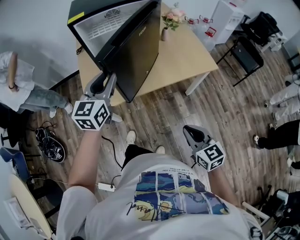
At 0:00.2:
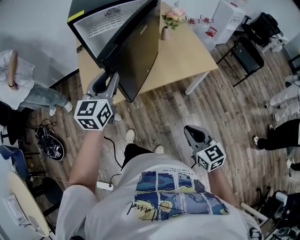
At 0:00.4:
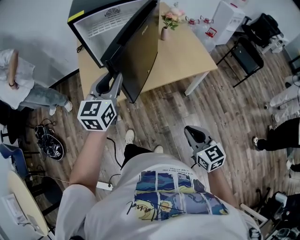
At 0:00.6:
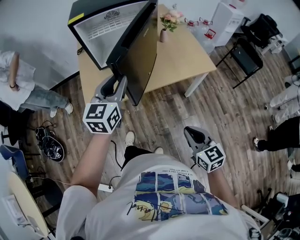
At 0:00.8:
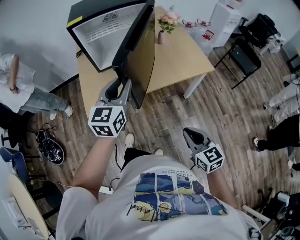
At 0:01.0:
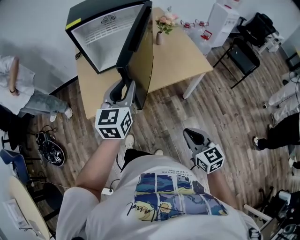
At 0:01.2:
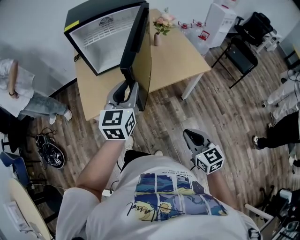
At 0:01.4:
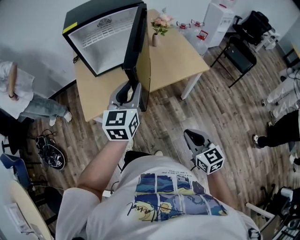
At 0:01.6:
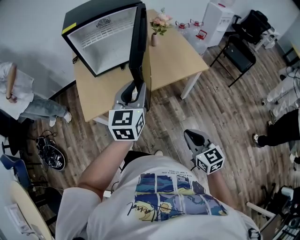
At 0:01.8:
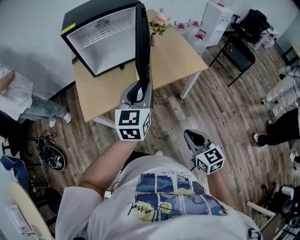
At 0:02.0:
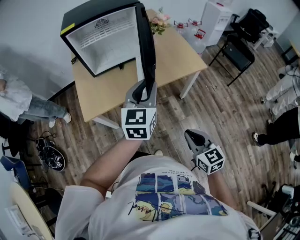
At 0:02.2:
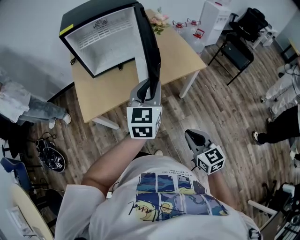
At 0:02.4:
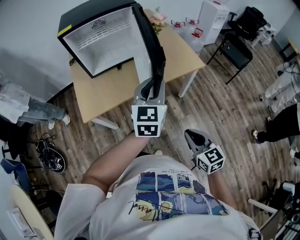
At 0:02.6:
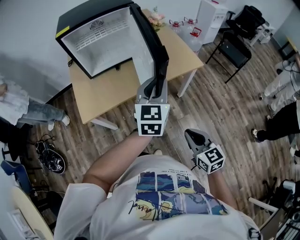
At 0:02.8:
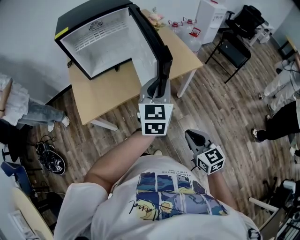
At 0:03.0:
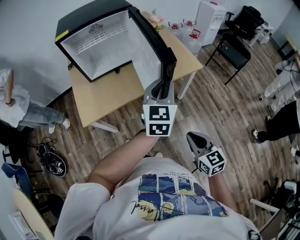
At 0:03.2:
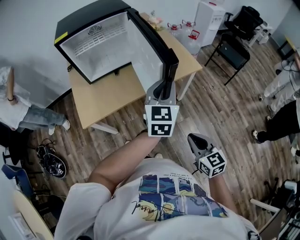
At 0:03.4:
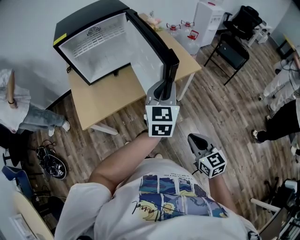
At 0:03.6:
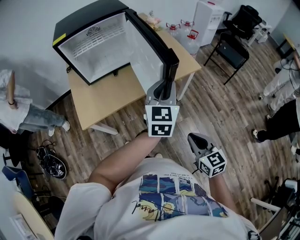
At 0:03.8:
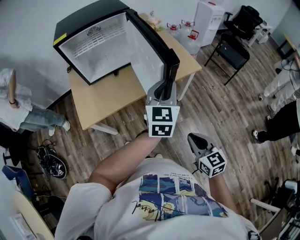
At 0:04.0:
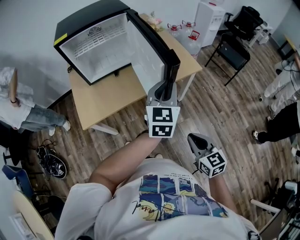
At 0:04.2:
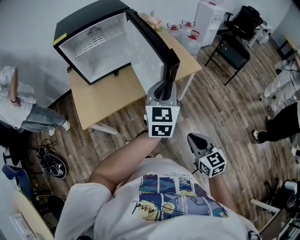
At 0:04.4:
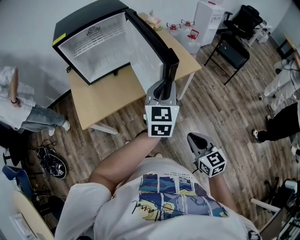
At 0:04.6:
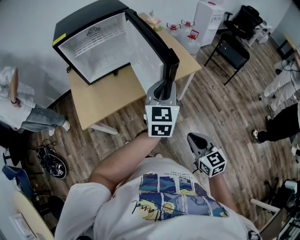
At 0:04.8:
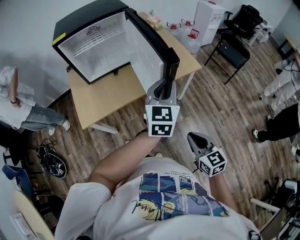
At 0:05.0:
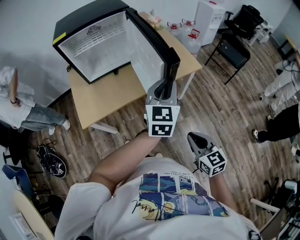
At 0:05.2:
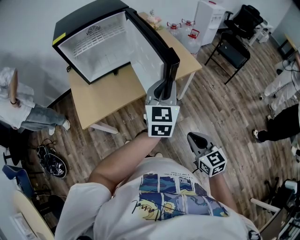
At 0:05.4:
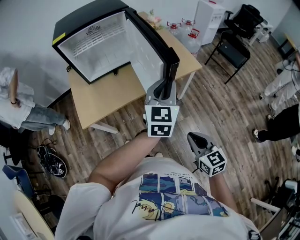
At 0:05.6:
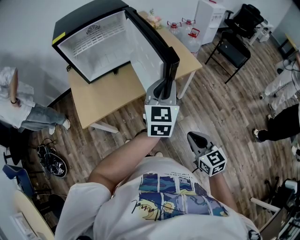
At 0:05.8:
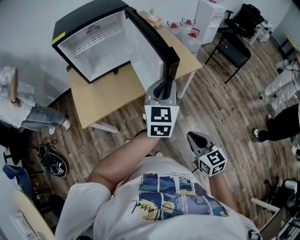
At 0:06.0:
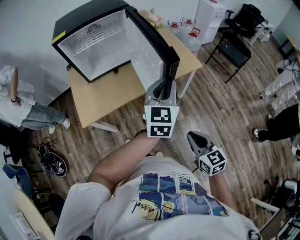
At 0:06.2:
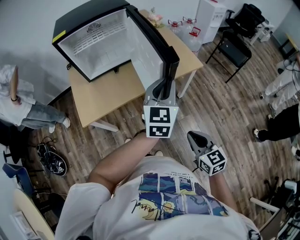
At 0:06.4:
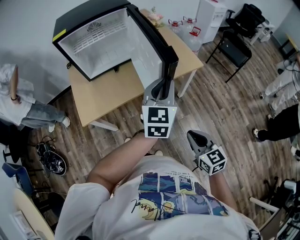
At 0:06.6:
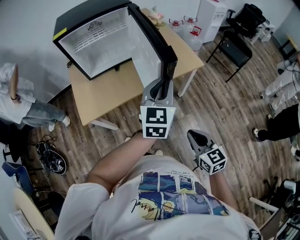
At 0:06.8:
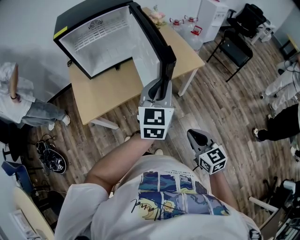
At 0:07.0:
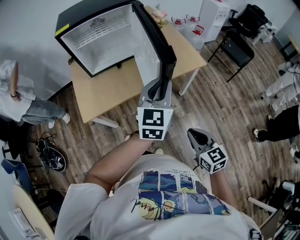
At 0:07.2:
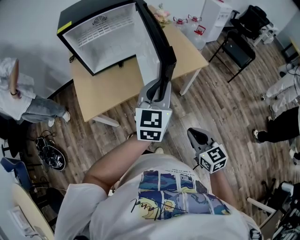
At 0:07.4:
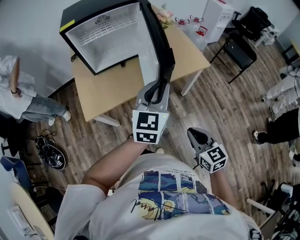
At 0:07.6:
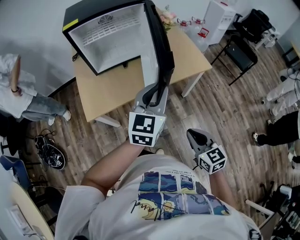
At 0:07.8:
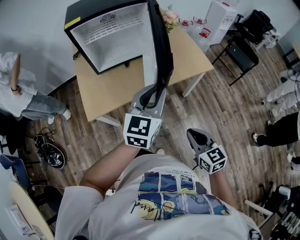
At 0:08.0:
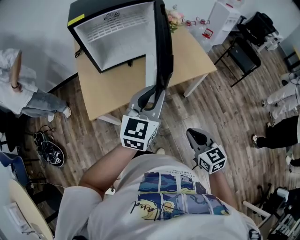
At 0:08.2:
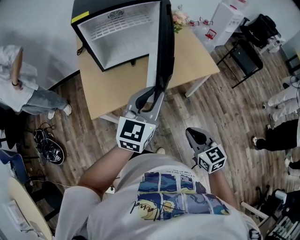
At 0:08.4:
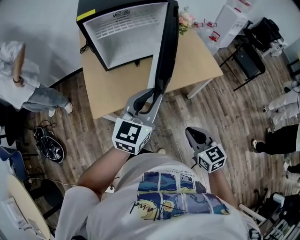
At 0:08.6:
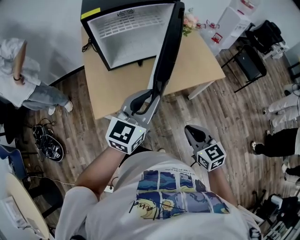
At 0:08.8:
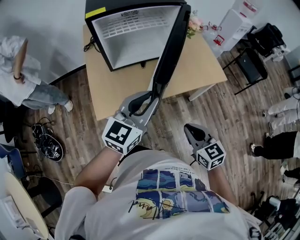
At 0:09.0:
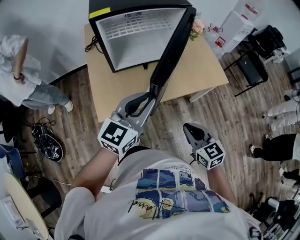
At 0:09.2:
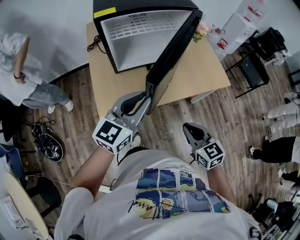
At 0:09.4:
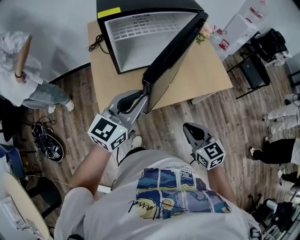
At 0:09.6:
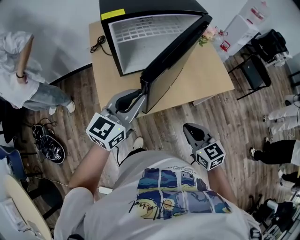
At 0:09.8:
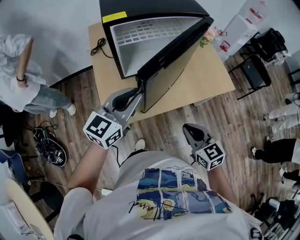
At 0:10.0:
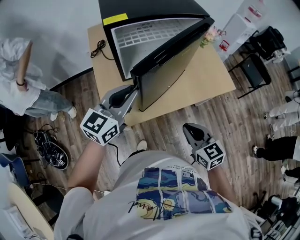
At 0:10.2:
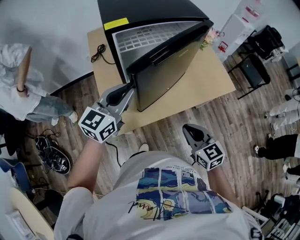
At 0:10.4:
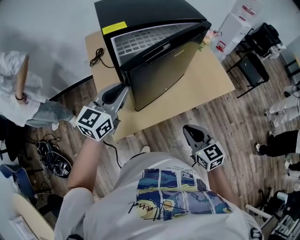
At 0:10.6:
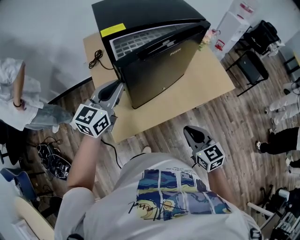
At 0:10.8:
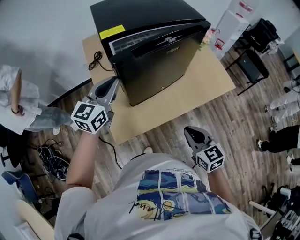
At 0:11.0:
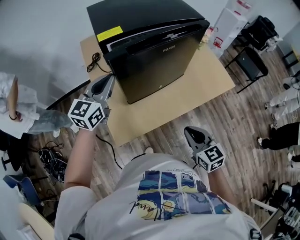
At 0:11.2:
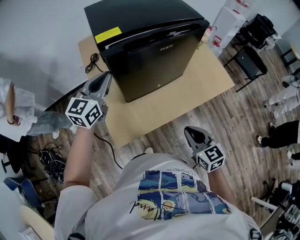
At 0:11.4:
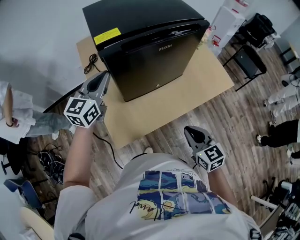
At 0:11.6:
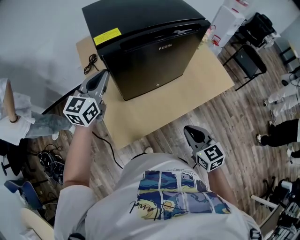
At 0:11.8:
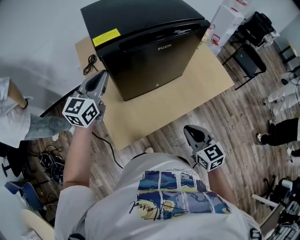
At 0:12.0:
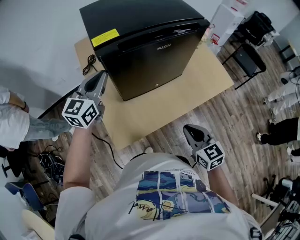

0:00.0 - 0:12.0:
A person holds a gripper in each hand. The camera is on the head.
0:00.0 - 0:01.6: The left gripper goes about 15 cm to the right and backward. Meanwhile the right gripper changes place by roughly 5 cm.
0:01.6 - 0:03.0: The left gripper shifts about 10 cm to the right.
0:03.0 - 0:04.4: The grippers move only a little.
0:04.4 - 0:06.0: Both grippers stay about where they are.
0:06.0 - 0:07.6: The left gripper travels to the left by roughly 10 cm, while the right gripper is displaced to the left by some 5 cm.
0:07.6 - 0:09.0: The left gripper travels to the left by some 15 cm. Meanwhile the right gripper is displaced to the left and forward by roughly 15 cm.
0:09.0 - 0:10.4: The left gripper is displaced to the left and forward by some 20 cm, while the right gripper travels to the left and forward by some 10 cm.
0:10.4 - 0:12.0: The left gripper heads forward and to the left, covering about 15 cm.

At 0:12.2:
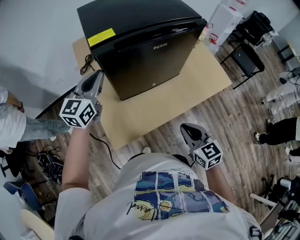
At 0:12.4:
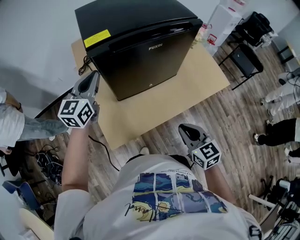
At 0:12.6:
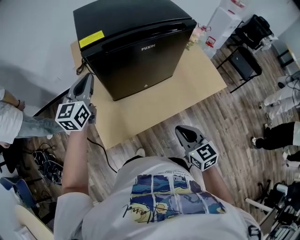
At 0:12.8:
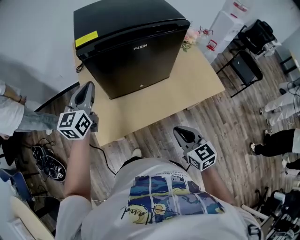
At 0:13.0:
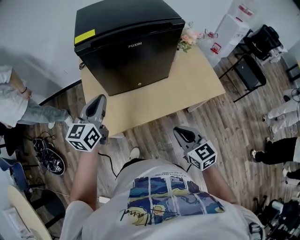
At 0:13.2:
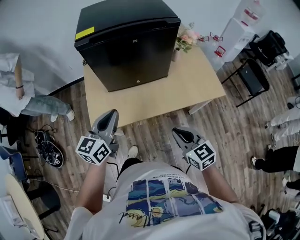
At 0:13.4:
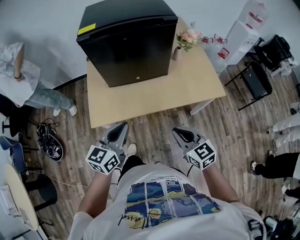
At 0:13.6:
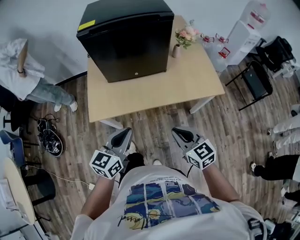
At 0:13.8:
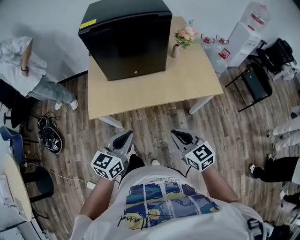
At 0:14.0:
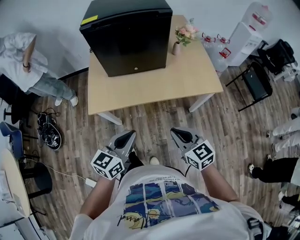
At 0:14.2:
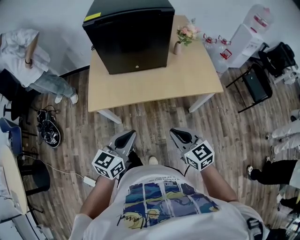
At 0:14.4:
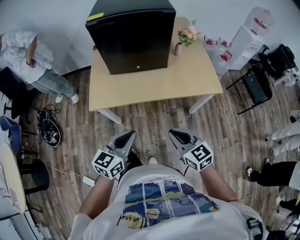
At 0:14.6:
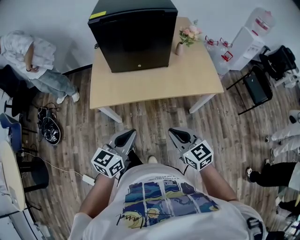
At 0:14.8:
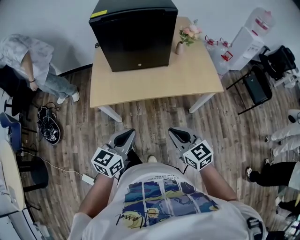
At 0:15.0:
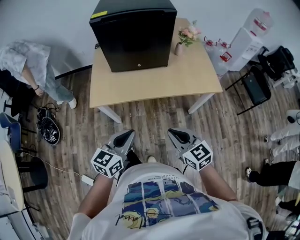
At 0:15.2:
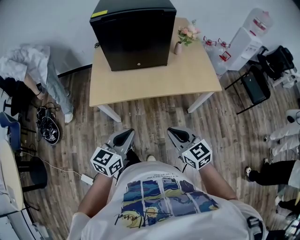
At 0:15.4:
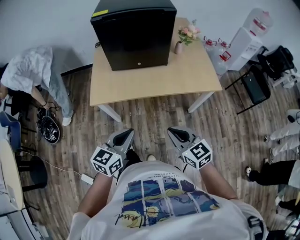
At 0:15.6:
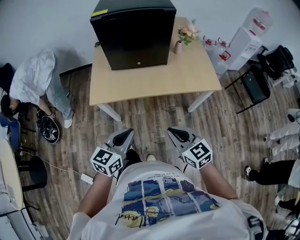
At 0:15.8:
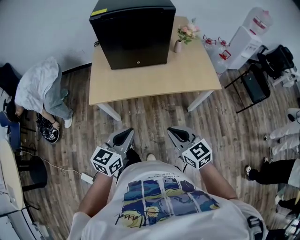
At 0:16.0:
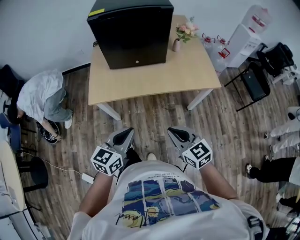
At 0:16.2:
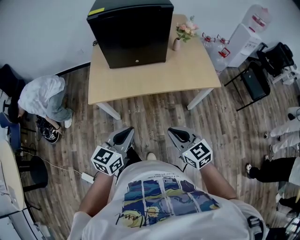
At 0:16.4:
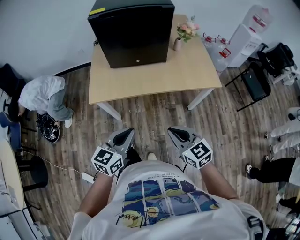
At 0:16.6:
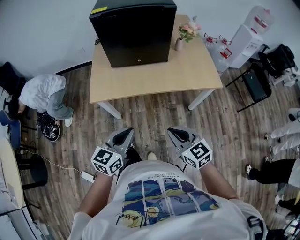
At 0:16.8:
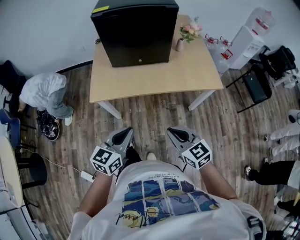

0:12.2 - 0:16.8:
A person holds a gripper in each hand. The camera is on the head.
0:12.2 - 0:13.8: The left gripper travels backward and to the right by some 50 cm, and turns by some 20 degrees; the right gripper travels to the right and backward by about 20 cm, and changes its angle by approximately 30 degrees.
0:13.8 - 0:15.2: The two grippers go roughly 5 cm backward.
0:15.2 - 0:16.8: The grippers stay close to where they were, moving slightly.

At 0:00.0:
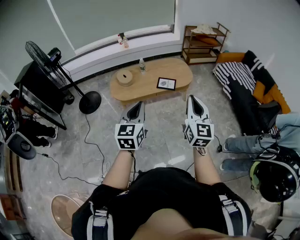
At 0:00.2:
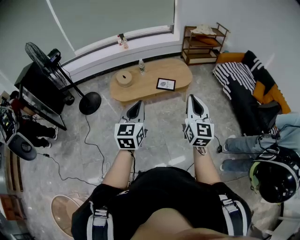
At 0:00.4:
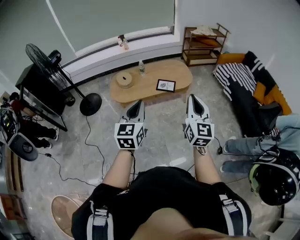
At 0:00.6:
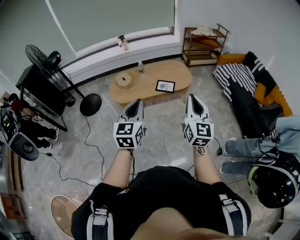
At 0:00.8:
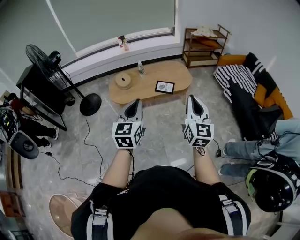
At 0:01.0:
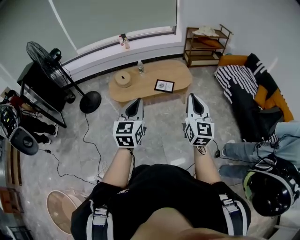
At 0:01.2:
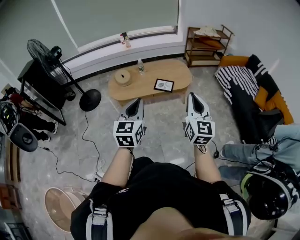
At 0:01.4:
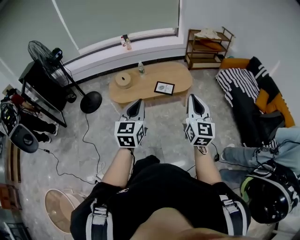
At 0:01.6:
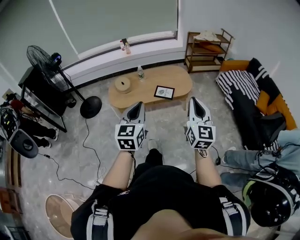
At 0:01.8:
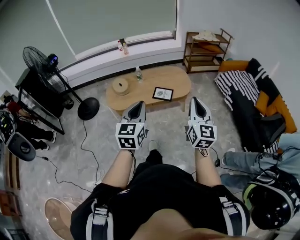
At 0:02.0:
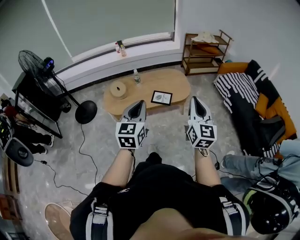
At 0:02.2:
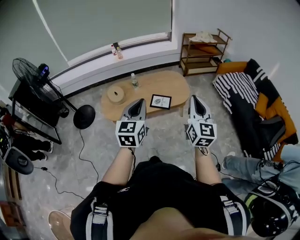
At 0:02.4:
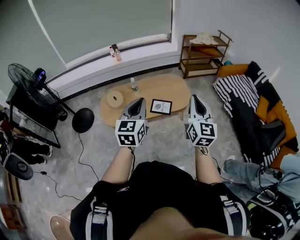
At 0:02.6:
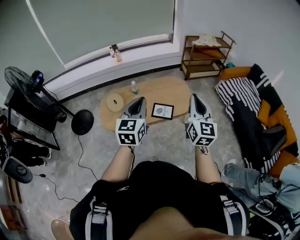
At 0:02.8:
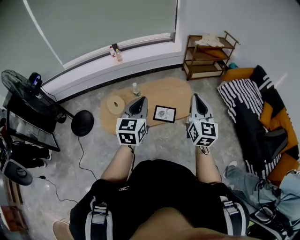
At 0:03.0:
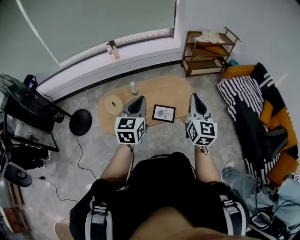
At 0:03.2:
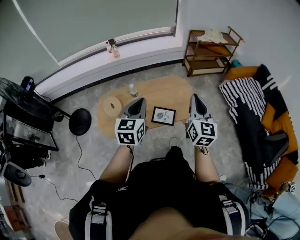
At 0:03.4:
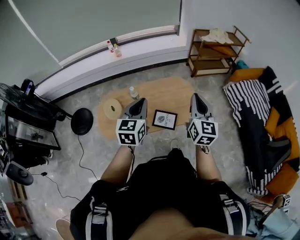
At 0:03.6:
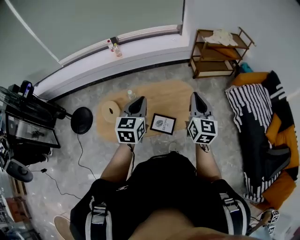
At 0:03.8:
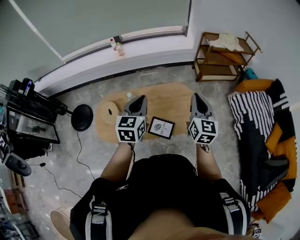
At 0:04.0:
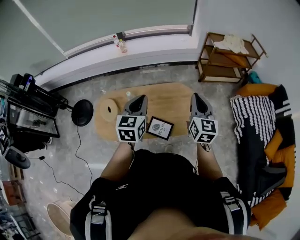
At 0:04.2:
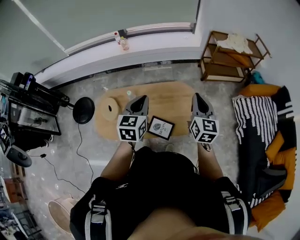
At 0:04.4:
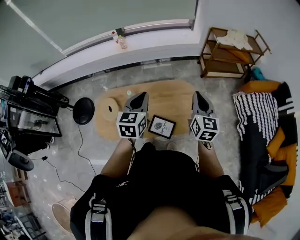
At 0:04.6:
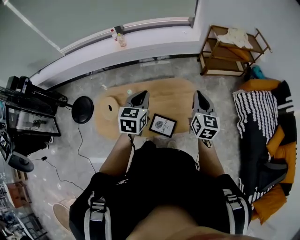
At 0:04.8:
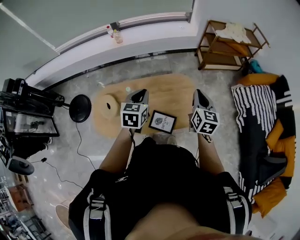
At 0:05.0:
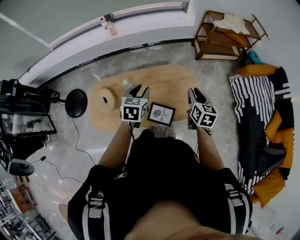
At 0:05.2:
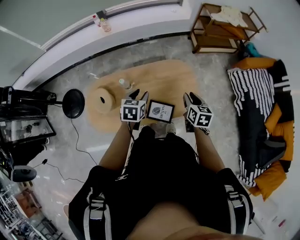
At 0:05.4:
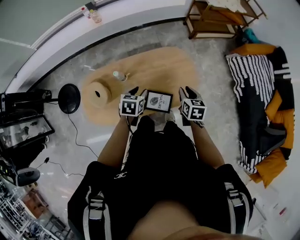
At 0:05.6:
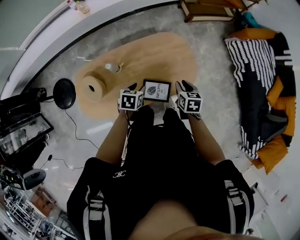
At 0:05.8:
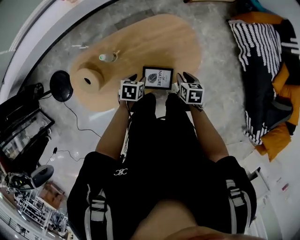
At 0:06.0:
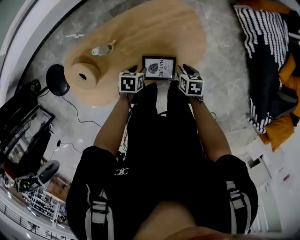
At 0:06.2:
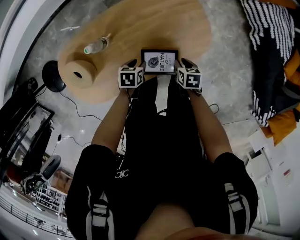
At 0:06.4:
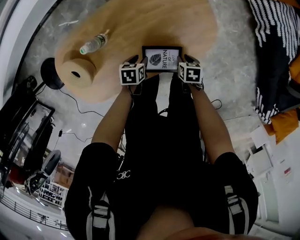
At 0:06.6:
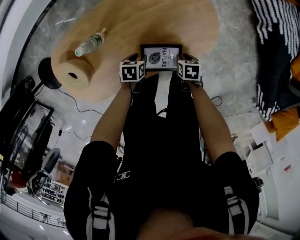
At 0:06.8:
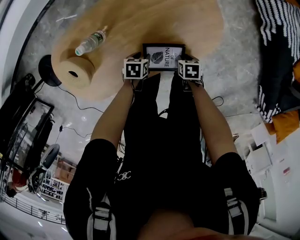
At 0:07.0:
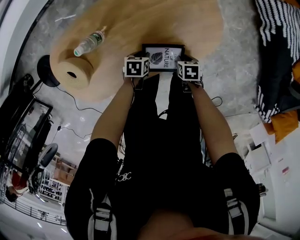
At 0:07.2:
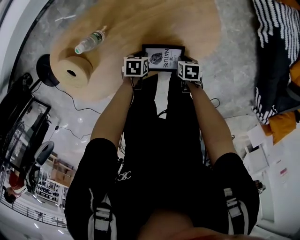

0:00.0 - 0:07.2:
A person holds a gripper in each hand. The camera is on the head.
0:00.0 - 0:01.4: The left gripper travels to the right by some 10 cm. Meanwhile the right gripper moves to the right and forward, roughly 10 cm.
0:01.4 - 0:02.8: The grippers both shift forward by approximately 40 cm.
0:02.8 - 0:04.4: The grippers both shift forward by some 40 cm.
0:04.4 - 0:05.8: Both grippers travel together downward, about 40 cm. The right gripper angles its fingers downward, by some 50 degrees, and opens, while the left gripper points its fingers approximately 40 degrees further downward, and opens up.
0:05.8 - 0:07.2: Both grippers move downward, approximately 25 cm. The left gripper closes its fingers. The right gripper turns by about 20 degrees.
